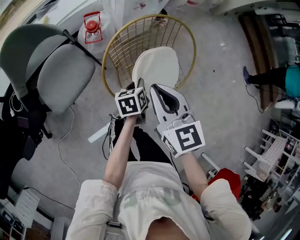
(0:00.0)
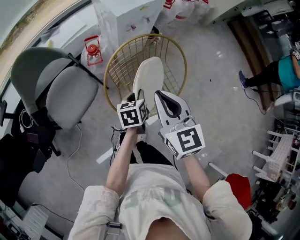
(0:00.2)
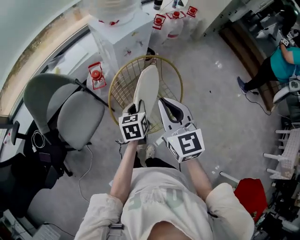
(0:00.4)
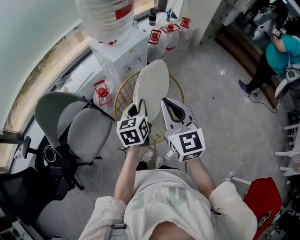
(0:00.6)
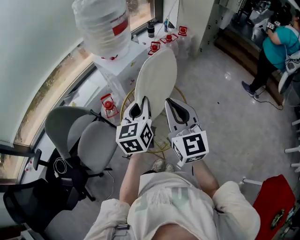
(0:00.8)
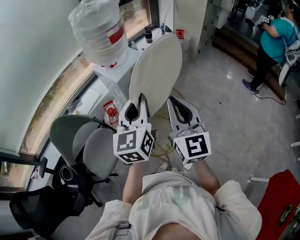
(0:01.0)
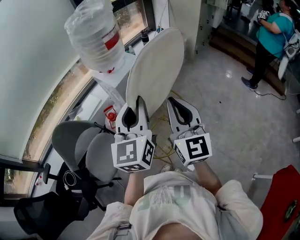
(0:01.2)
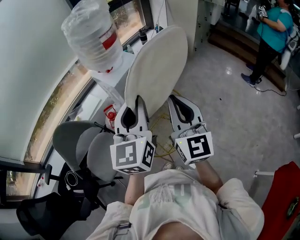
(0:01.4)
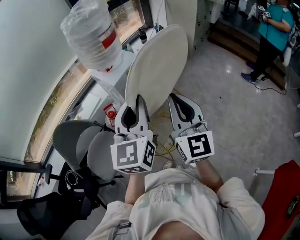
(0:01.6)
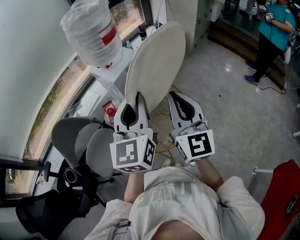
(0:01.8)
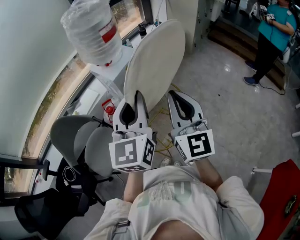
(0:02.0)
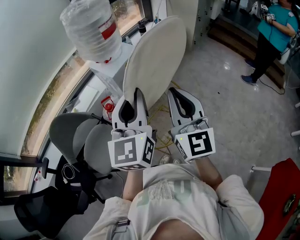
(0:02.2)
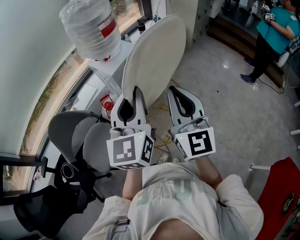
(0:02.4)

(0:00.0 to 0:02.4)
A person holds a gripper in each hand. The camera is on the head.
0:00.0 - 0:01.2: The left gripper shifts some 50 cm upward, and angles its fingers upward, by some 50 degrees. Meanwhile the right gripper is displaced upward and to the right by some 30 cm, and angles its fingers upward, by about 30 degrees.
0:01.2 - 0:02.4: The grippers move only a little.

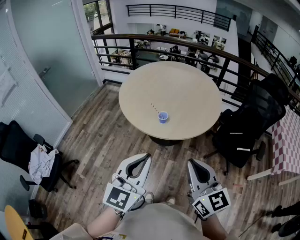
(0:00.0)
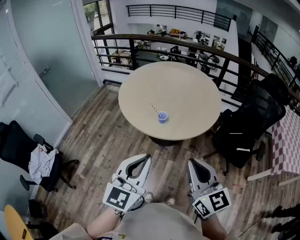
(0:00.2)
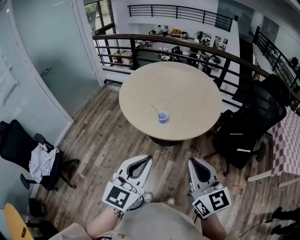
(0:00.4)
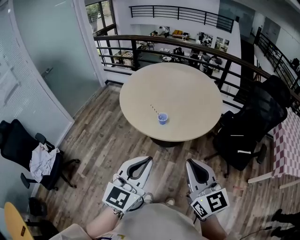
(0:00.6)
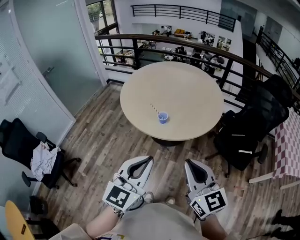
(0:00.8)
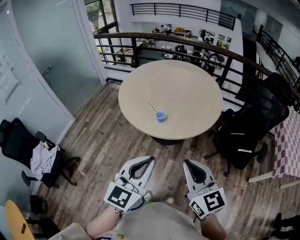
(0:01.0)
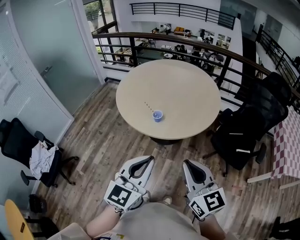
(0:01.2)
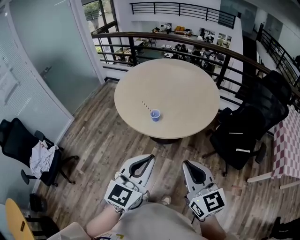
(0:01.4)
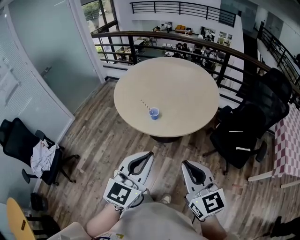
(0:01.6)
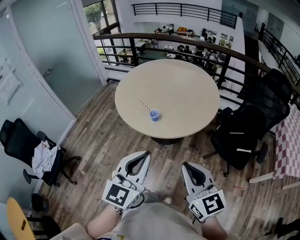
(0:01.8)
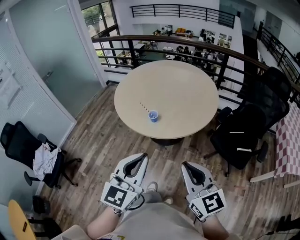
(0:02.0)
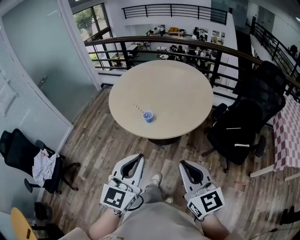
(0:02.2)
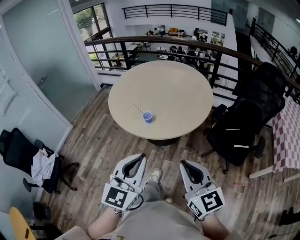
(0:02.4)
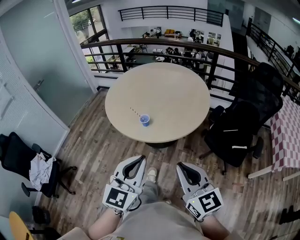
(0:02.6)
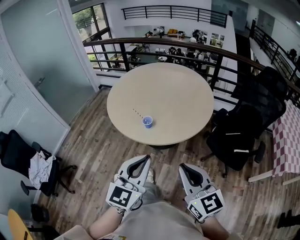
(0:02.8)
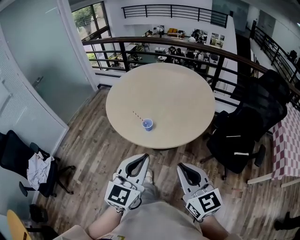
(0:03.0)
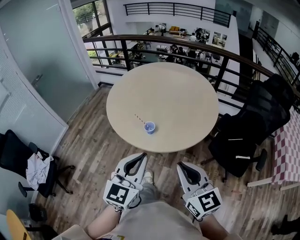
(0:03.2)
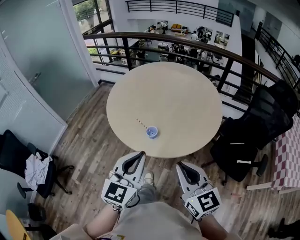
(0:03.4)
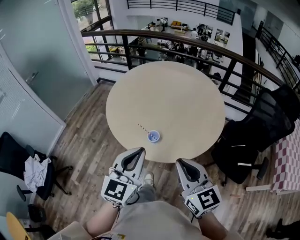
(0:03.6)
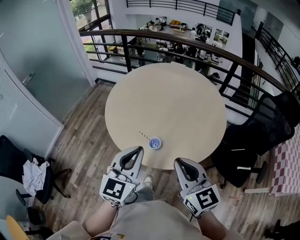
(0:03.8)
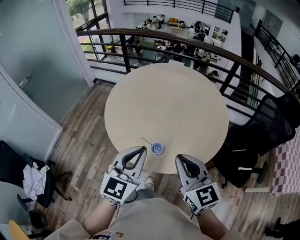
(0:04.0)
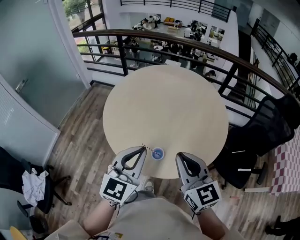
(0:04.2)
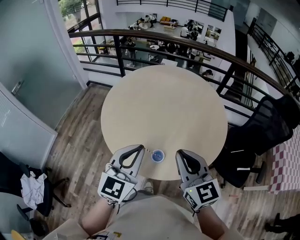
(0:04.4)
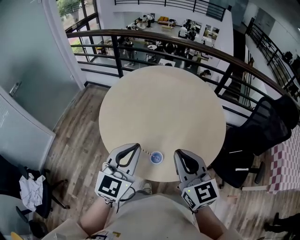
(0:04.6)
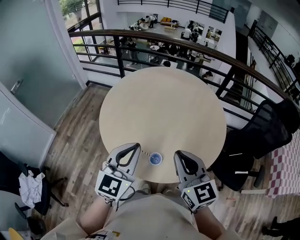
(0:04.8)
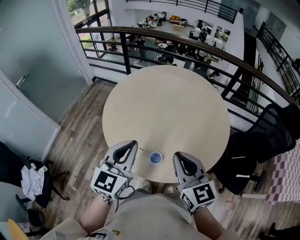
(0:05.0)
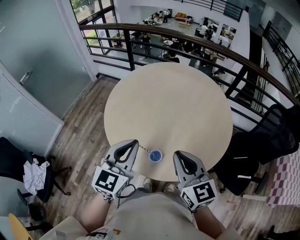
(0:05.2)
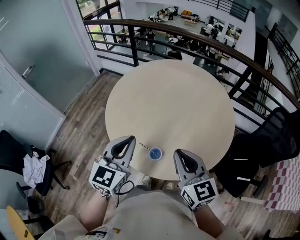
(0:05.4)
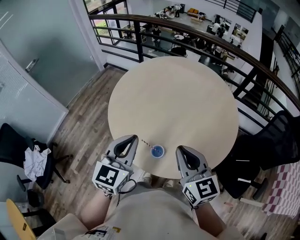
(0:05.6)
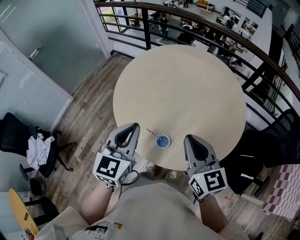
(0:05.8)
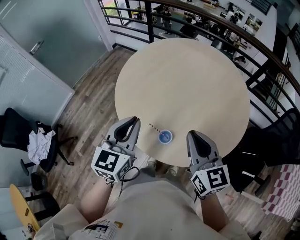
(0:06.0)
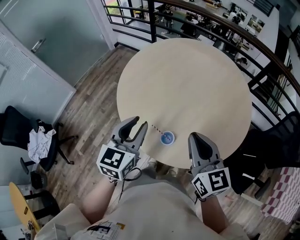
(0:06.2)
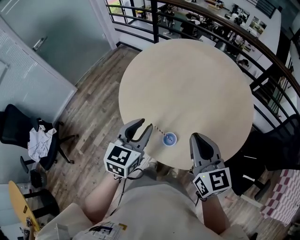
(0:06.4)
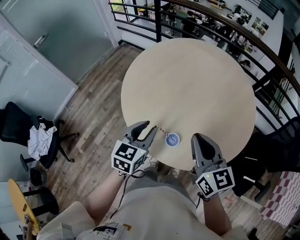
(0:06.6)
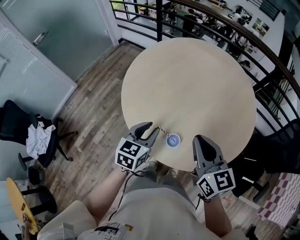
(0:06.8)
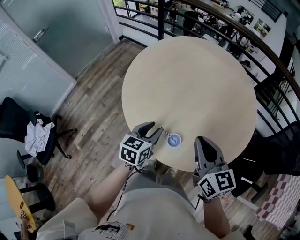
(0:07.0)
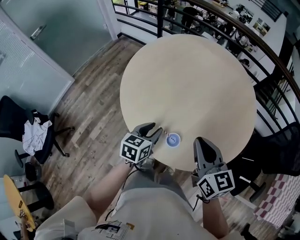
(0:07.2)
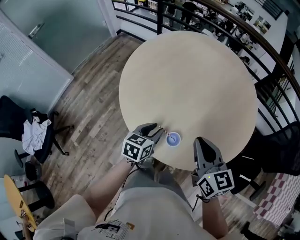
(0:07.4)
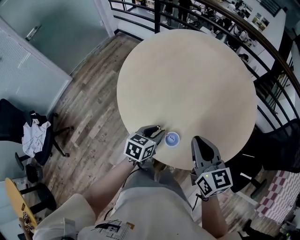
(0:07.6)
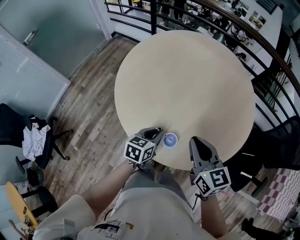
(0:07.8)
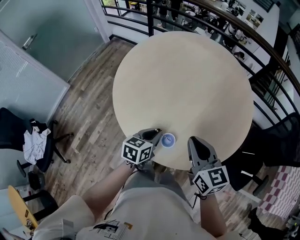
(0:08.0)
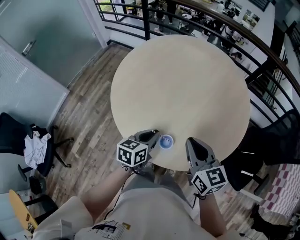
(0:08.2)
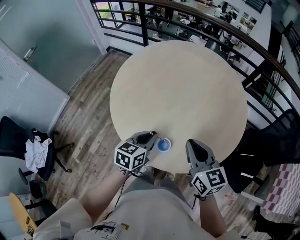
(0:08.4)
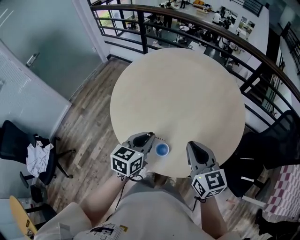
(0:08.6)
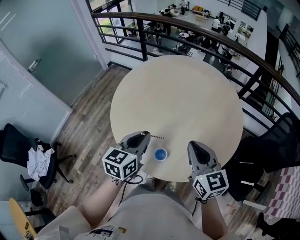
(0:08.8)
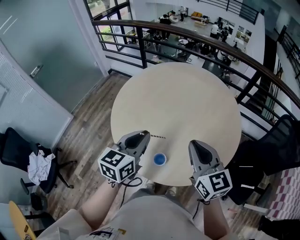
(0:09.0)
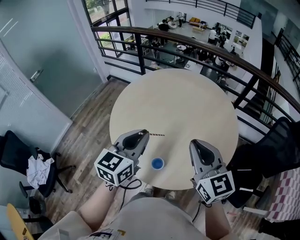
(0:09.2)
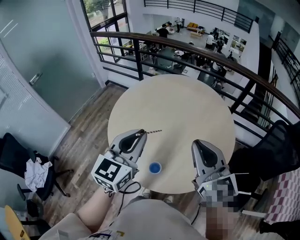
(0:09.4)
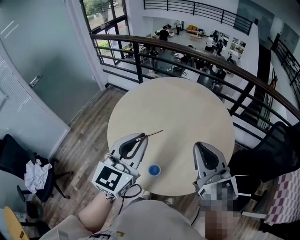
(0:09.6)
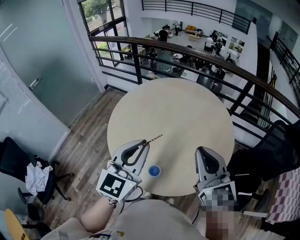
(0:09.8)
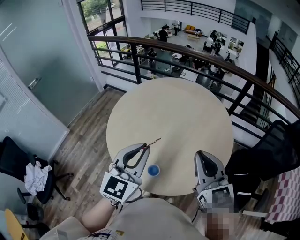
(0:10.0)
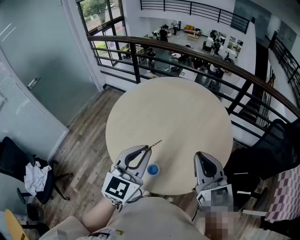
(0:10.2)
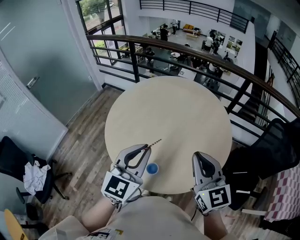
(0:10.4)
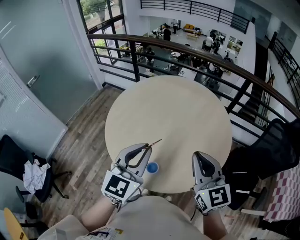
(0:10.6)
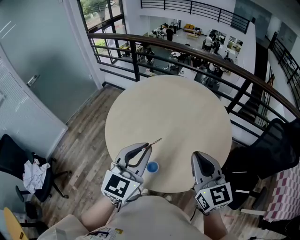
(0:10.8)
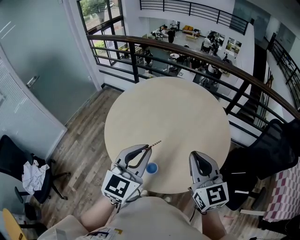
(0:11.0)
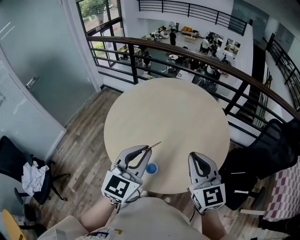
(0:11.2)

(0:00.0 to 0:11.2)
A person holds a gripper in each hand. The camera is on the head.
0:00.0 - 0:01.6: Both grippers travel together to the right, approximately 10 cm.
0:01.6 - 0:03.2: The grippers both shift forward by some 10 cm.
0:03.2 - 0:04.8: Both grippers travel together forward, approximately 30 cm.
0:04.8 - 0:06.4: The left gripper is displaced downward by about 10 cm, rotates approximately 20 degrees, and opens up. Meanwhile the right gripper heads downward, covering about 5 cm.
0:06.4 - 0:08.0: The left gripper is displaced downward by approximately 15 cm, and rotates about 30 degrees. The right gripper goes roughly 5 cm downward.
0:08.0 - 0:09.6: The left gripper goes roughly 35 cm upward, and angles its fingers upward, by approximately 30 degrees. Meanwhile the right gripper shifts approximately 20 cm upward, and rotates some 30 degrees.
0:09.6 - 0:11.2: The left gripper ends up approximately 5 cm from where it was. The right gripper shifts by about 5 cm.

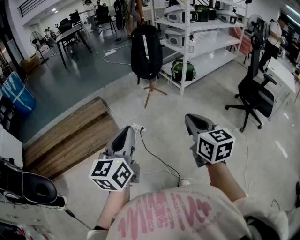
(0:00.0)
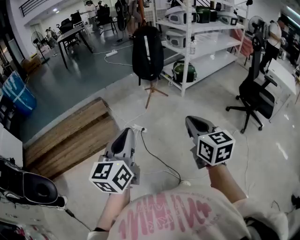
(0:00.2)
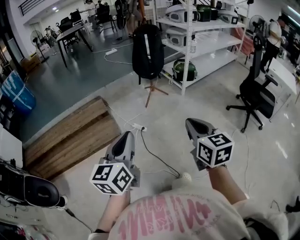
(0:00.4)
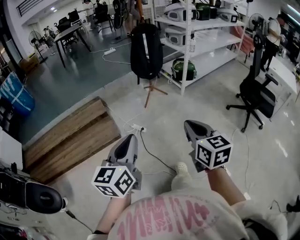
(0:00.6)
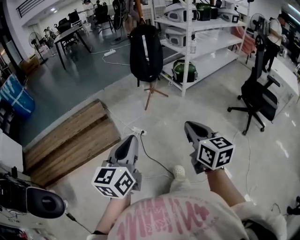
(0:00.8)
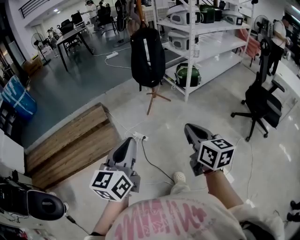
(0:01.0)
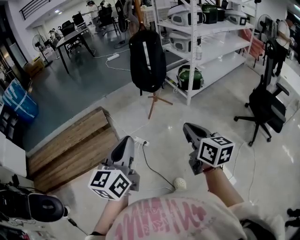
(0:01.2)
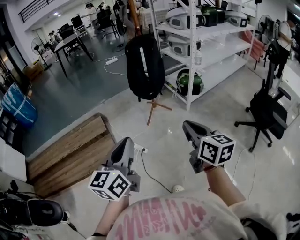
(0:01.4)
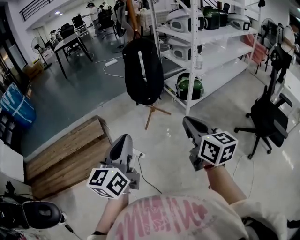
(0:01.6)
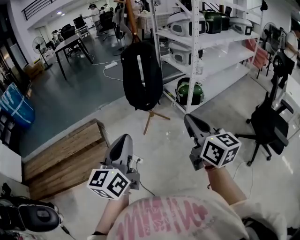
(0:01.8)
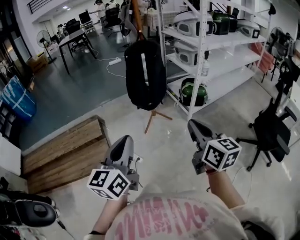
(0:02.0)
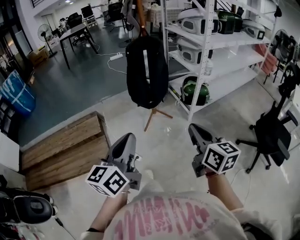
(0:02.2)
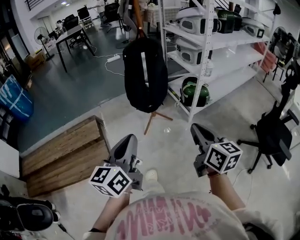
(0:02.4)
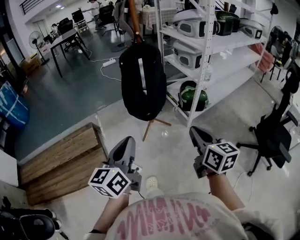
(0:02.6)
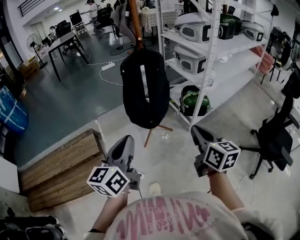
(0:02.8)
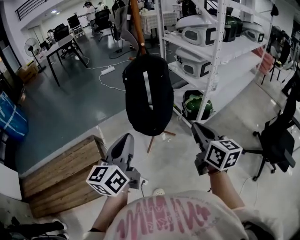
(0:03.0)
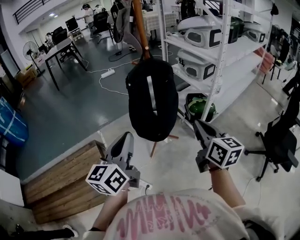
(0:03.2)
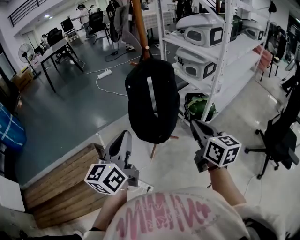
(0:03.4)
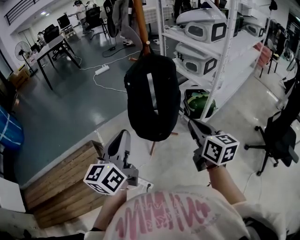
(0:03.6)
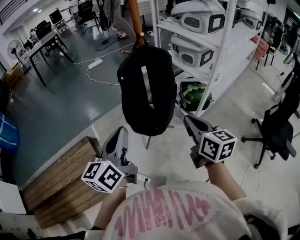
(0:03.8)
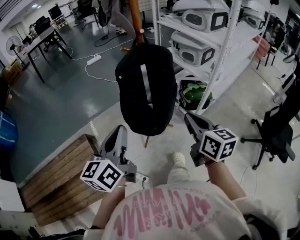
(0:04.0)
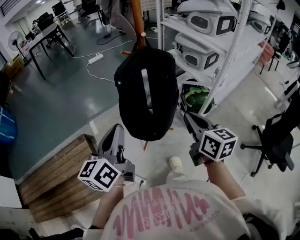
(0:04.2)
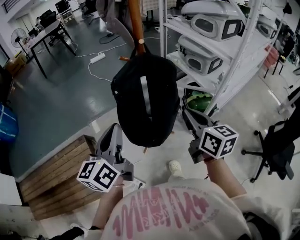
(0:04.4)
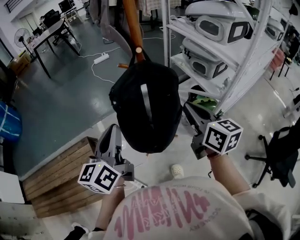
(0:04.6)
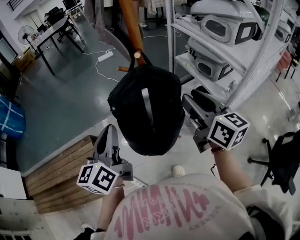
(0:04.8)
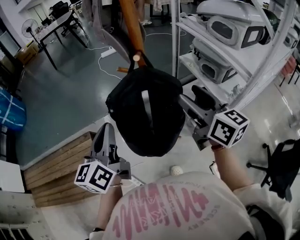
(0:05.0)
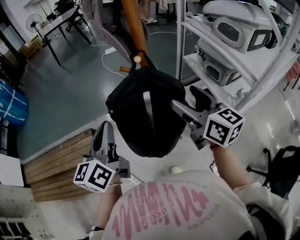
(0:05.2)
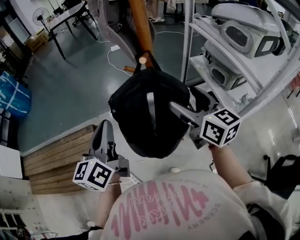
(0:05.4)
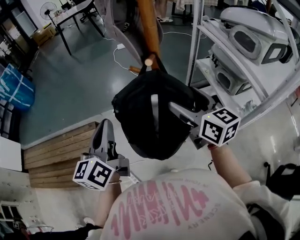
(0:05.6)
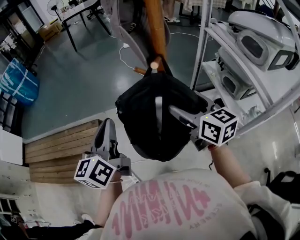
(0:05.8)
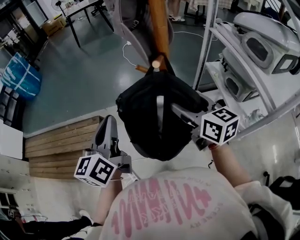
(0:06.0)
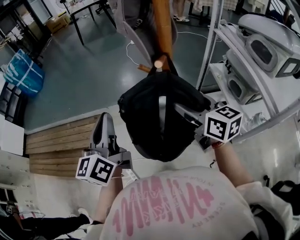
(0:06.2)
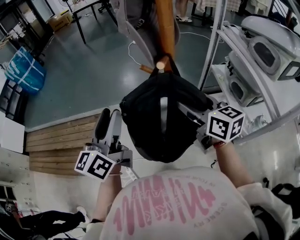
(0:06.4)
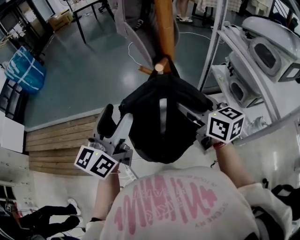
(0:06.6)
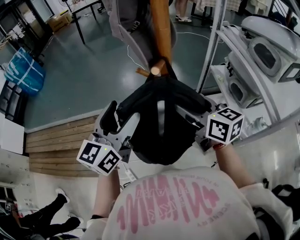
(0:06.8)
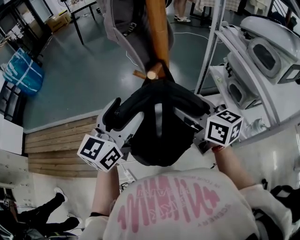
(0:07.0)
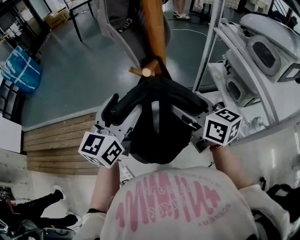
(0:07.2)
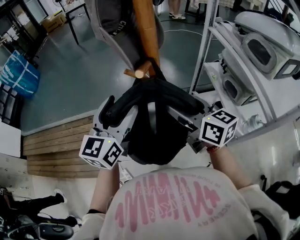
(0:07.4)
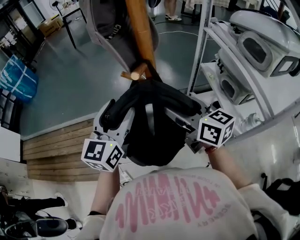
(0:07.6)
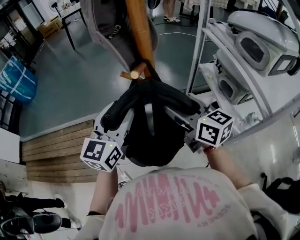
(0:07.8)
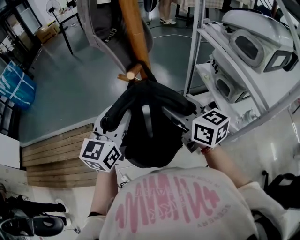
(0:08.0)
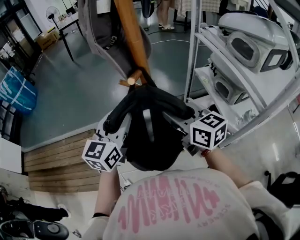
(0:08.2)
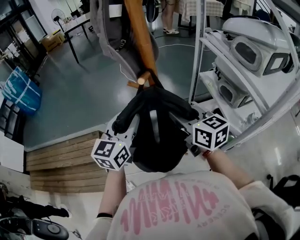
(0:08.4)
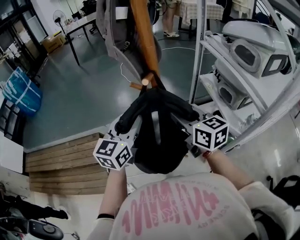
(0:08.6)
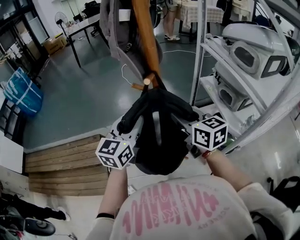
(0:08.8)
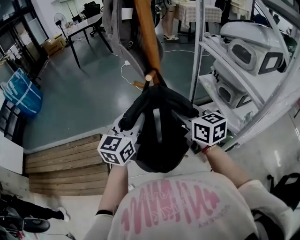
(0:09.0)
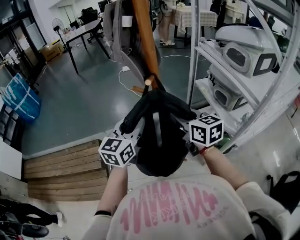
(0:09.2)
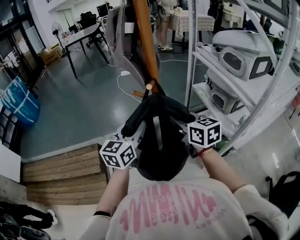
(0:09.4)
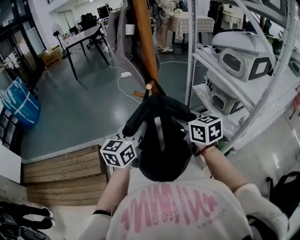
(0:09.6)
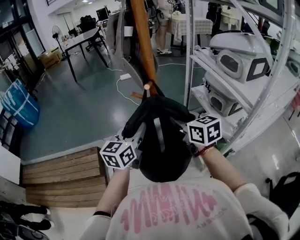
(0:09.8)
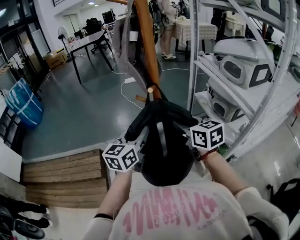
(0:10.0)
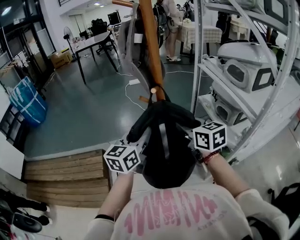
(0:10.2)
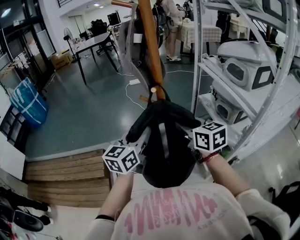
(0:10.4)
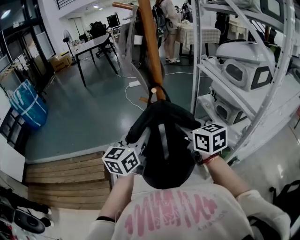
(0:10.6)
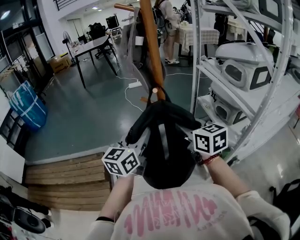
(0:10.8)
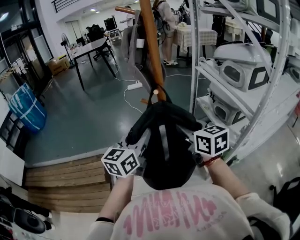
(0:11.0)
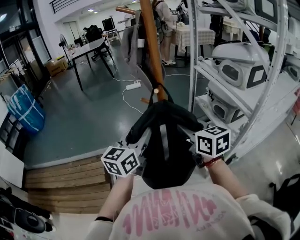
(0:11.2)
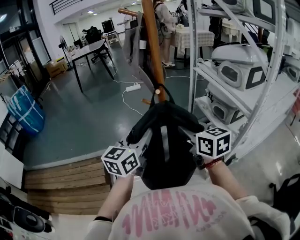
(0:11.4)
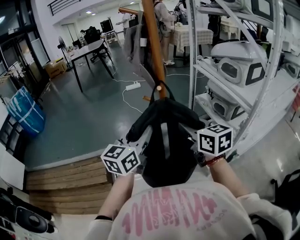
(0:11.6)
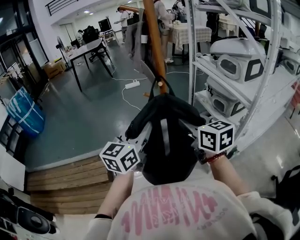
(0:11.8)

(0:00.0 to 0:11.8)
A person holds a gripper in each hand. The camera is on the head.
0:00.0 - 0:01.4: The two grippers go approximately 25 cm forward.
0:01.4 - 0:03.0: The grippers both shift forward by some 35 cm.
0:03.0 - 0:04.4: The two grippers go approximately 20 cm forward.
0:04.4 - 0:06.0: The right gripper shifts by some 20 cm, rotates about 30 degrees, and opens. Meanwhile the left gripper changes place by some 10 cm, and turns by approximately 30 degrees.
0:06.0 - 0:07.4: The left gripper moves to the right and forward, roughly 10 cm, turns by some 20 degrees, and opens its fingers.
0:07.4 - 0:08.8: The left gripper closes its fingers; the right gripper closes its fingers.
0:08.8 - 0:10.4: The grippers stay close to where they were, moving slightly.
0:10.4 - 0:11.8: The right gripper moves backward, some 5 cm. The left gripper is displaced upward by approximately 5 cm.
